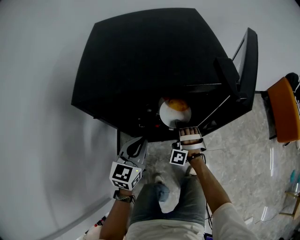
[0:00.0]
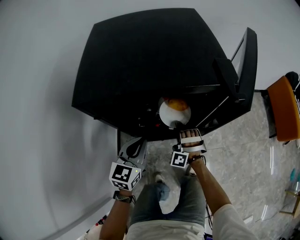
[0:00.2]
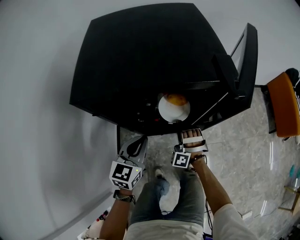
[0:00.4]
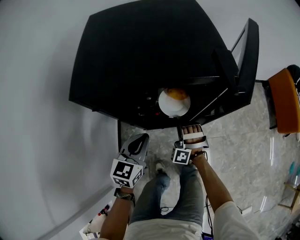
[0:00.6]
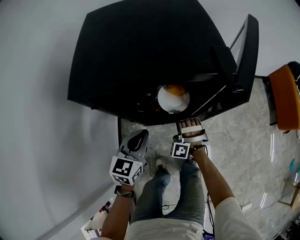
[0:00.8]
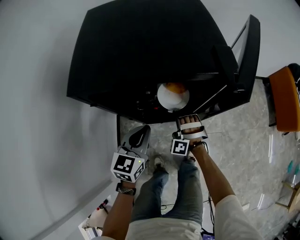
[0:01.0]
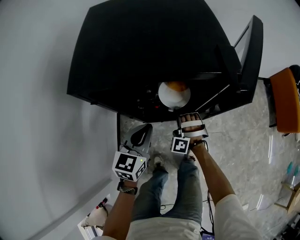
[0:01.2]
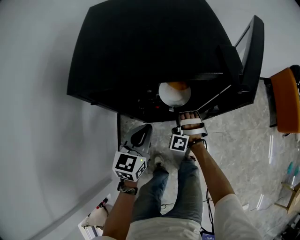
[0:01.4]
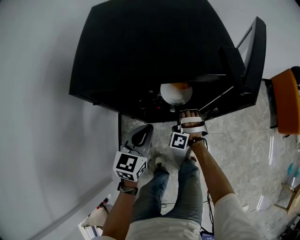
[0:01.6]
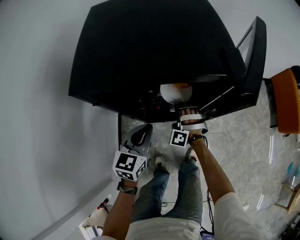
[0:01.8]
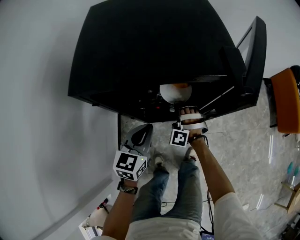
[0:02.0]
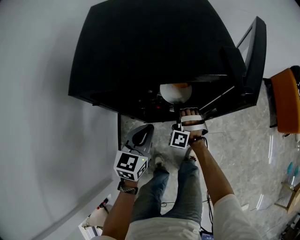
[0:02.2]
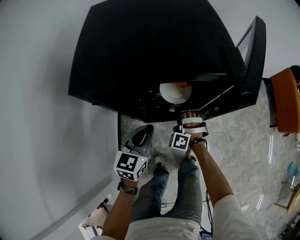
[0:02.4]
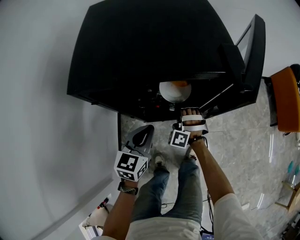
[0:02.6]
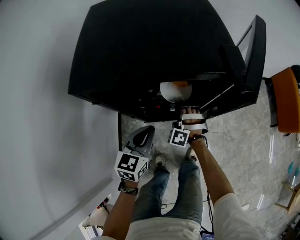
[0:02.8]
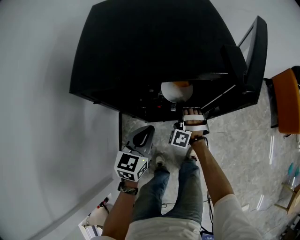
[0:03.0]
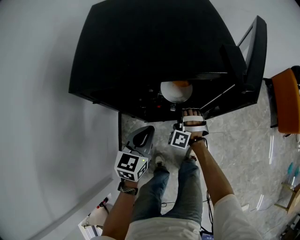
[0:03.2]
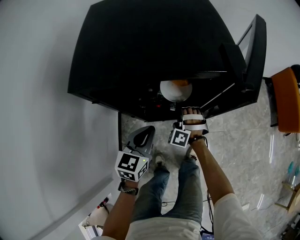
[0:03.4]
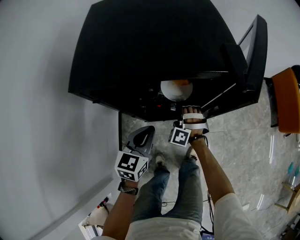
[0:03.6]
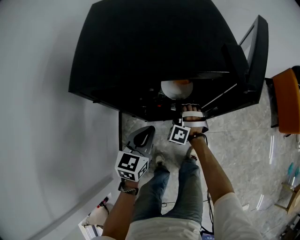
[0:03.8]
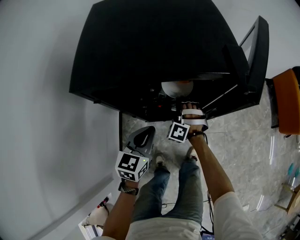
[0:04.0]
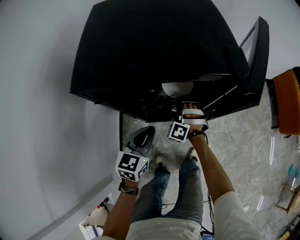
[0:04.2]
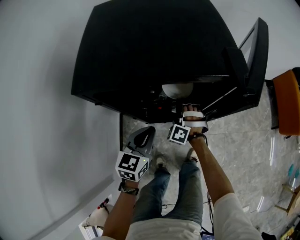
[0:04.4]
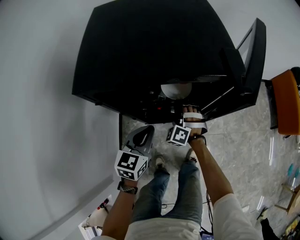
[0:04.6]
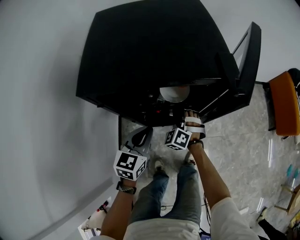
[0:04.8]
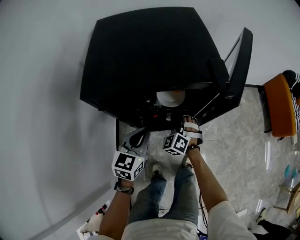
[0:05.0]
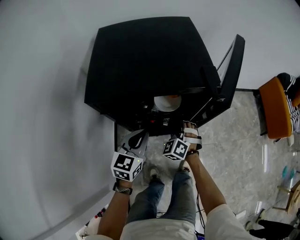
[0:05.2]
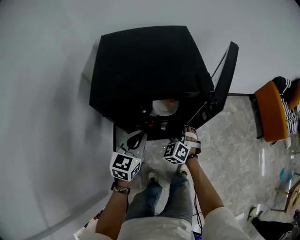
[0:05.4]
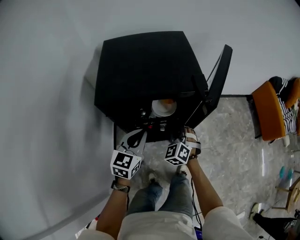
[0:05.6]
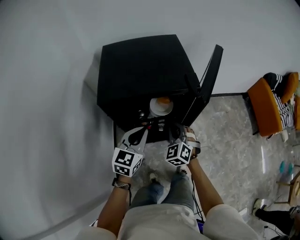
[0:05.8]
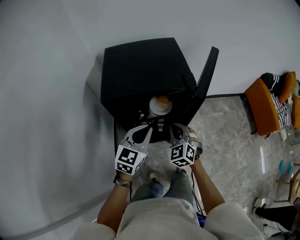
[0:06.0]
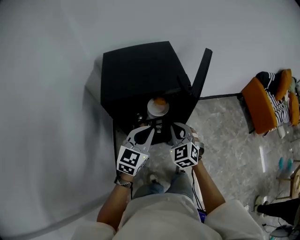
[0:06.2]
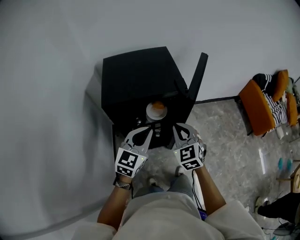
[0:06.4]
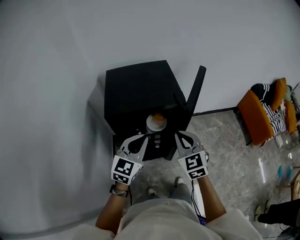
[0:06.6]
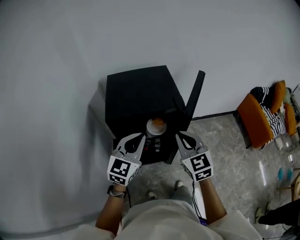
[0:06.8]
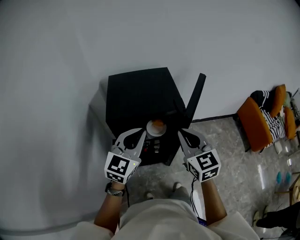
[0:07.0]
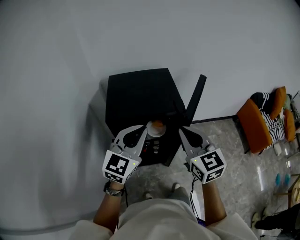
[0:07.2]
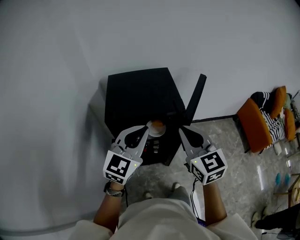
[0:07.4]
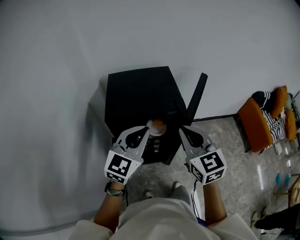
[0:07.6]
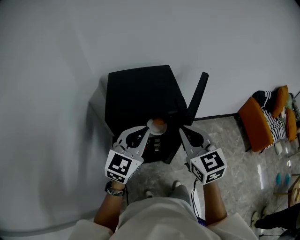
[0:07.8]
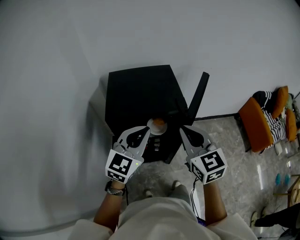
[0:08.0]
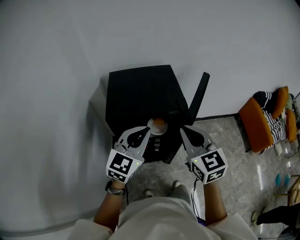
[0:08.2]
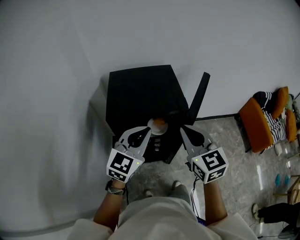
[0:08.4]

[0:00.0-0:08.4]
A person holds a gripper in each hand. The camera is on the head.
0:04.2 to 0:05.6: The left gripper goes approximately 10 cm upward.
0:05.6 to 0:07.0: The left gripper goes approximately 20 cm upward, and changes its angle by approximately 20 degrees.

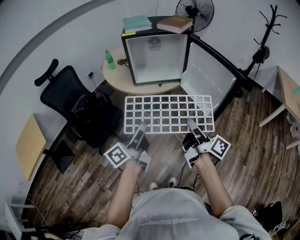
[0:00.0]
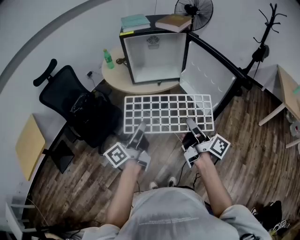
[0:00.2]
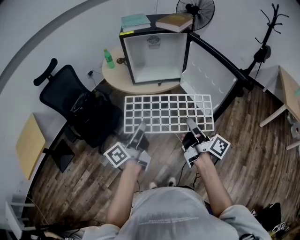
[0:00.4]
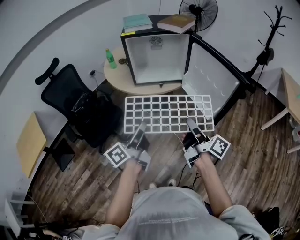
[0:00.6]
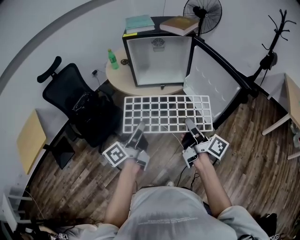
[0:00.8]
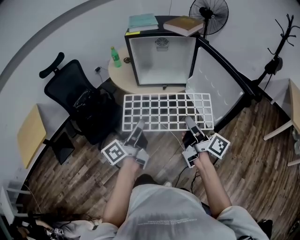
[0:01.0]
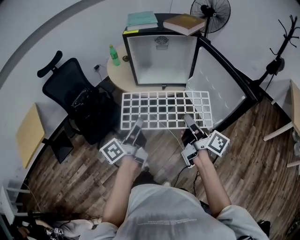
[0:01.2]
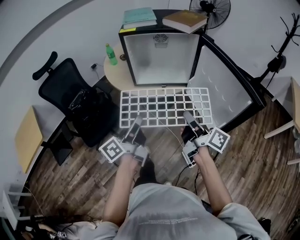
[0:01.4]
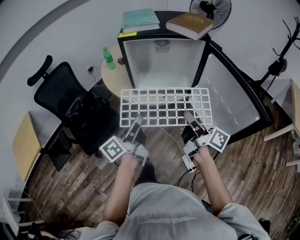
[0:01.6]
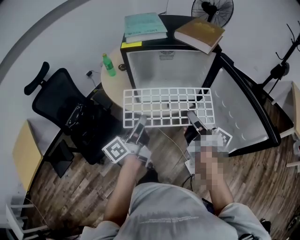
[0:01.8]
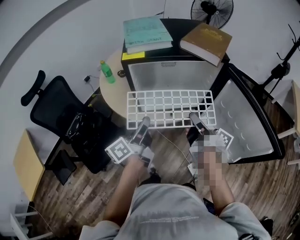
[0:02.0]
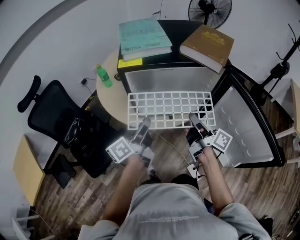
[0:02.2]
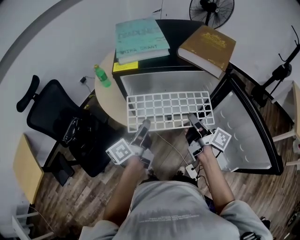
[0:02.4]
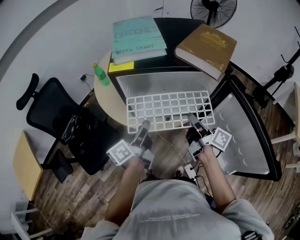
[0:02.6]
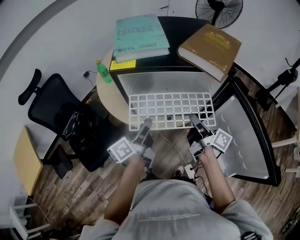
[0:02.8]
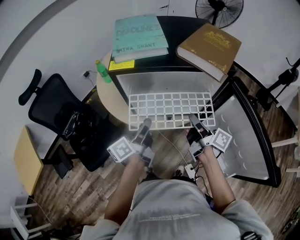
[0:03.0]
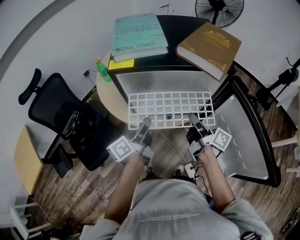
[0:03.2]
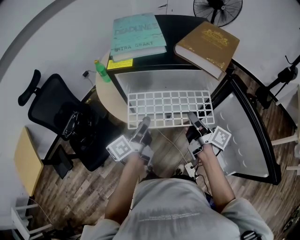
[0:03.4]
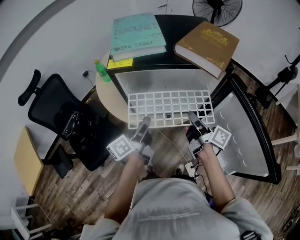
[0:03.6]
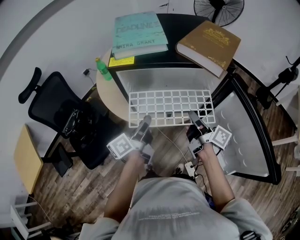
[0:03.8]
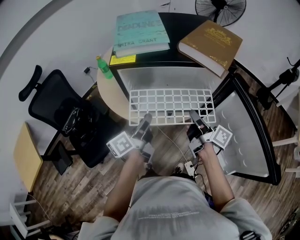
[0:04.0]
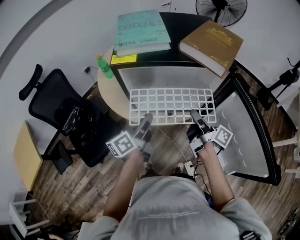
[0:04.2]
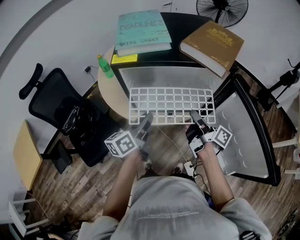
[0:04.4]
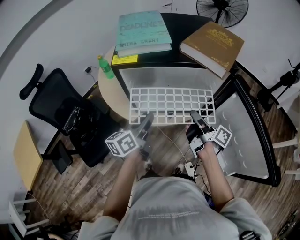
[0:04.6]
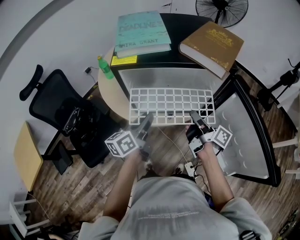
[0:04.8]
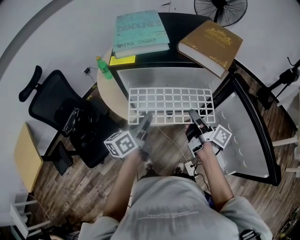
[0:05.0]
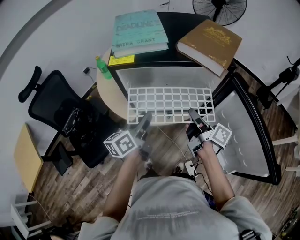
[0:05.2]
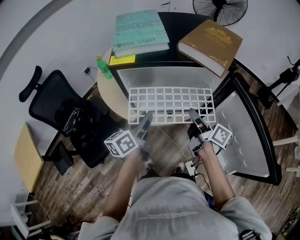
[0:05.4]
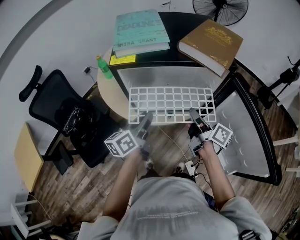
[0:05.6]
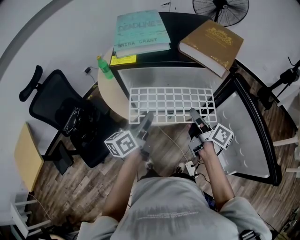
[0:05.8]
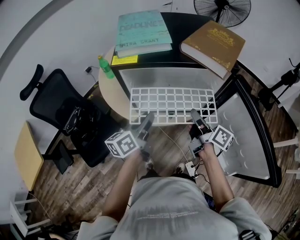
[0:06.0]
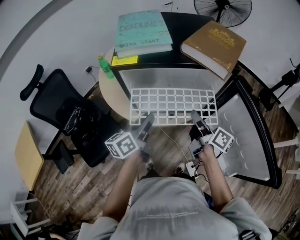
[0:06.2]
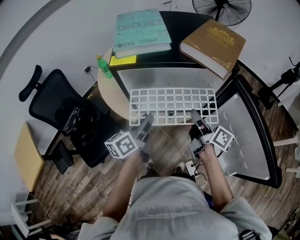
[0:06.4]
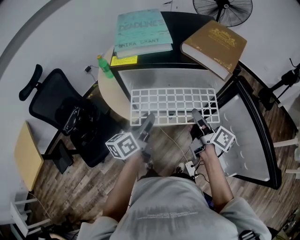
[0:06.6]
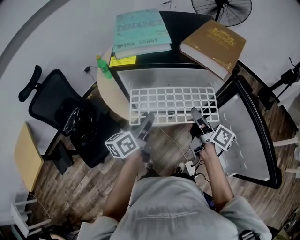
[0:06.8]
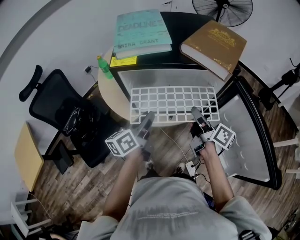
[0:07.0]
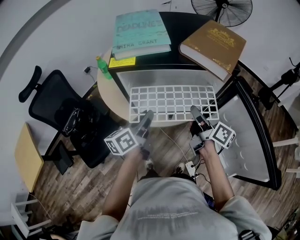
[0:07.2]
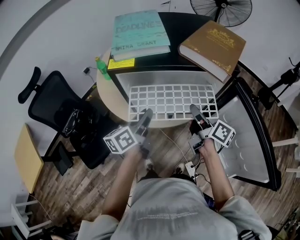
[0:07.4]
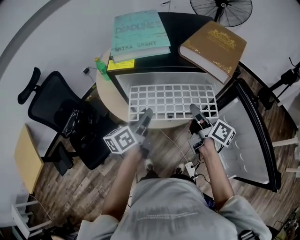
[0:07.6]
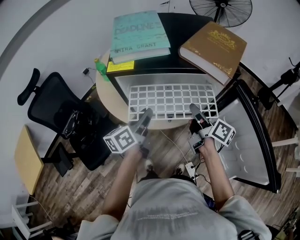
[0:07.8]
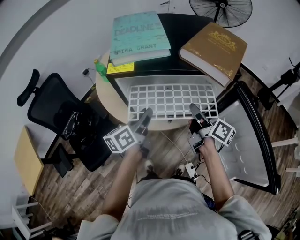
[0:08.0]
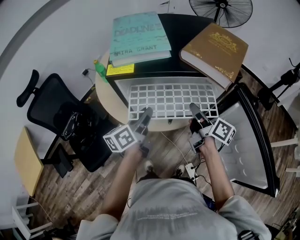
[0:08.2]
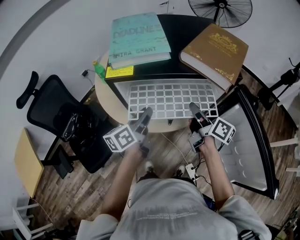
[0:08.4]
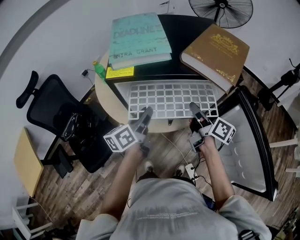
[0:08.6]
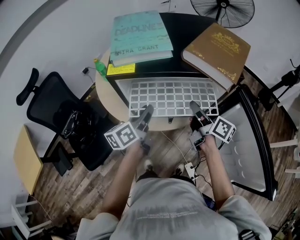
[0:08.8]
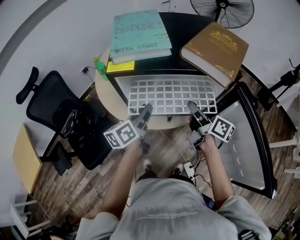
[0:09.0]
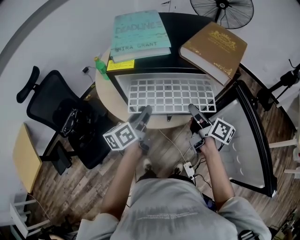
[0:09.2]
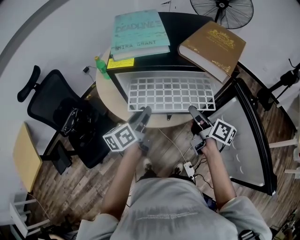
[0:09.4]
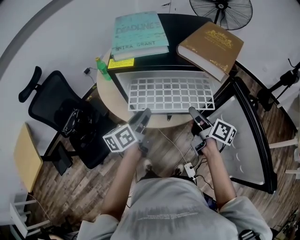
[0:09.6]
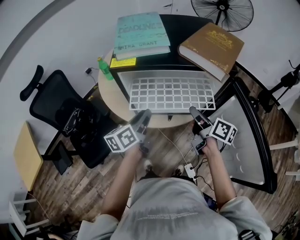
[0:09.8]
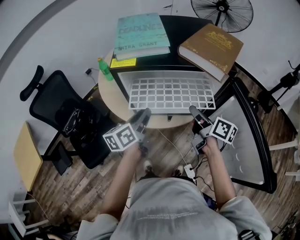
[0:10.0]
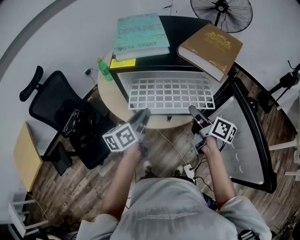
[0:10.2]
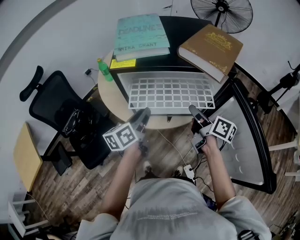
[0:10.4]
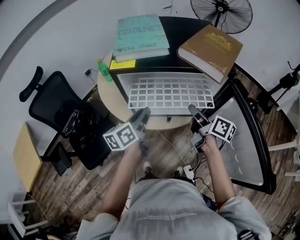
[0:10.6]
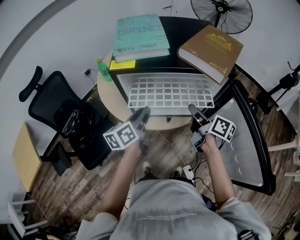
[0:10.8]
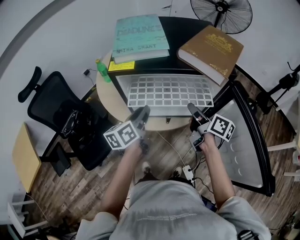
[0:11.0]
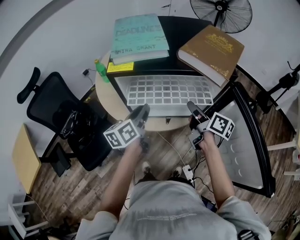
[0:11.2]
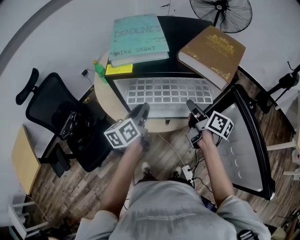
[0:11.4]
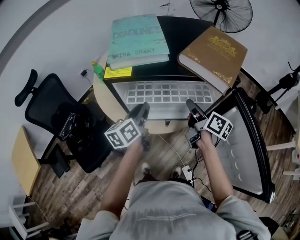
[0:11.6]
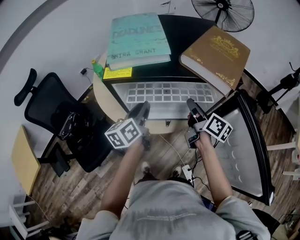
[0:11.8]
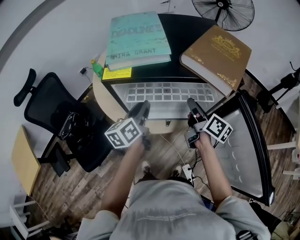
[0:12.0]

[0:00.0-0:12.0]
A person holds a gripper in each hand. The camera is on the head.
0:00.0 to 0:01.6: The grippers both shift forward by roughly 20 cm.
0:01.6 to 0:03.0: Both grippers move forward, about 20 cm.
0:03.0 to 0:04.4: The grippers make only small movements.
0:04.4 to 0:06.0: The grippers stay close to where they were, moving slightly.
0:06.0 to 0:07.6: There are only small adjustments of the grippers.
0:07.6 to 0:10.4: The grippers move only a little.
0:10.4 to 0:12.0: Both grippers move forward, some 5 cm.

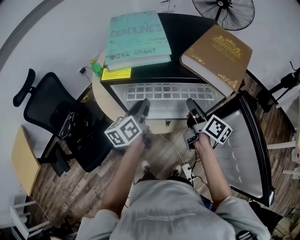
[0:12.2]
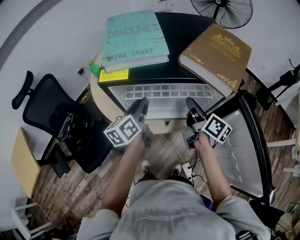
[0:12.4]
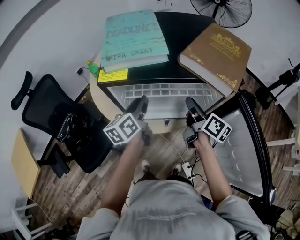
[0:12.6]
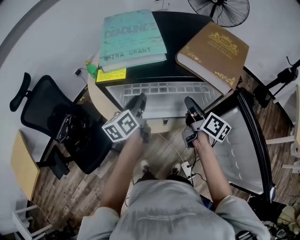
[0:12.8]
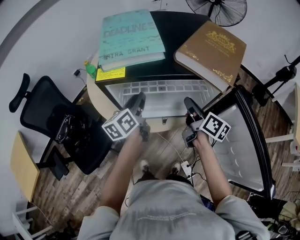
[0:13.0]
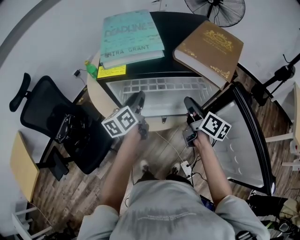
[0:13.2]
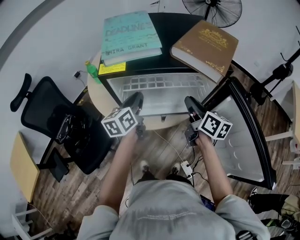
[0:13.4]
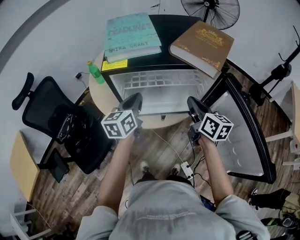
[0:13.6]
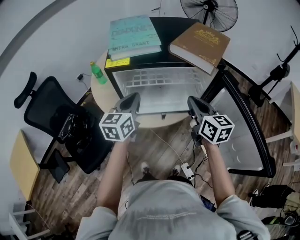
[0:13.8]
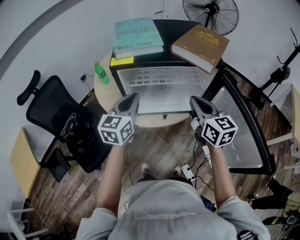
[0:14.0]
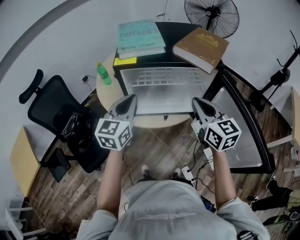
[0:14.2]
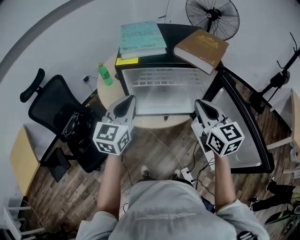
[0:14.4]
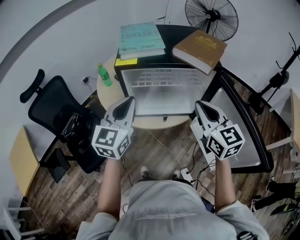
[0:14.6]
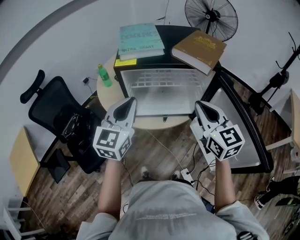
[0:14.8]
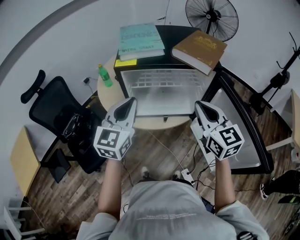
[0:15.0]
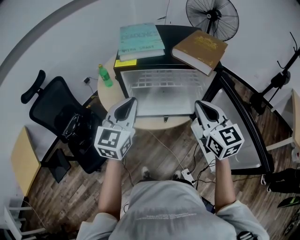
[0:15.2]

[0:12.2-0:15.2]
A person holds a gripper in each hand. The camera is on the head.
0:12.2 to 0:13.8: The right gripper travels backward and upward by some 10 cm, swivels approximately 40 degrees, and closes up, while the left gripper travels upward by some 5 cm, and turns by some 30 degrees.
0:13.8 to 0:15.2: Both grippers move upward and backward, roughly 10 cm. The right gripper changes its angle by roughly 20 degrees. The left gripper swivels roughly 20 degrees.

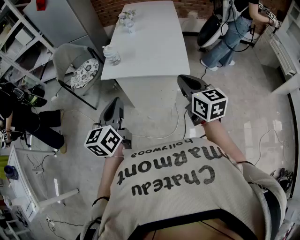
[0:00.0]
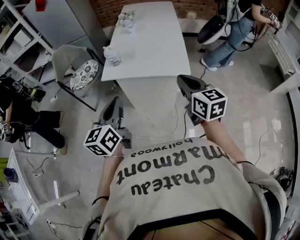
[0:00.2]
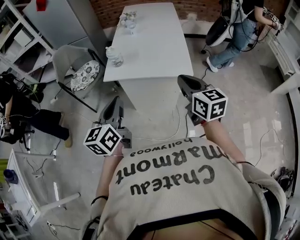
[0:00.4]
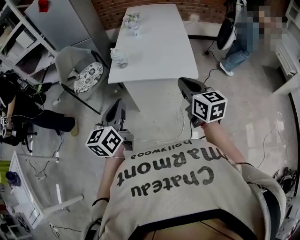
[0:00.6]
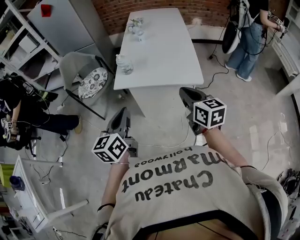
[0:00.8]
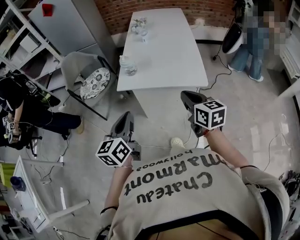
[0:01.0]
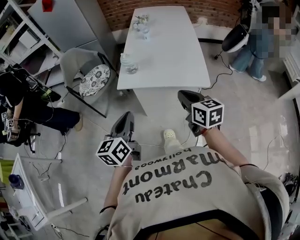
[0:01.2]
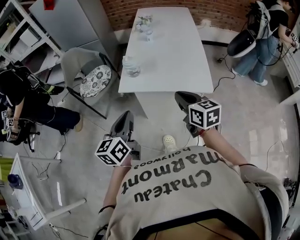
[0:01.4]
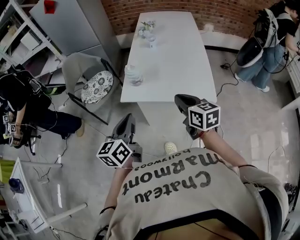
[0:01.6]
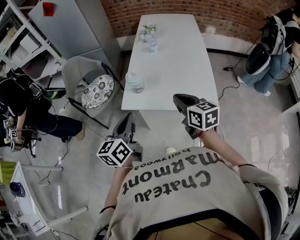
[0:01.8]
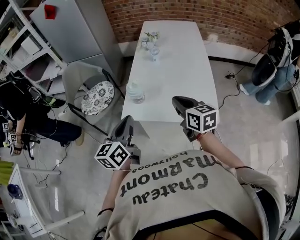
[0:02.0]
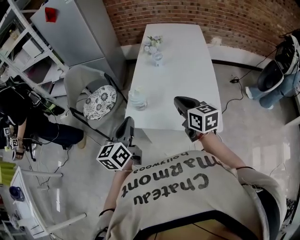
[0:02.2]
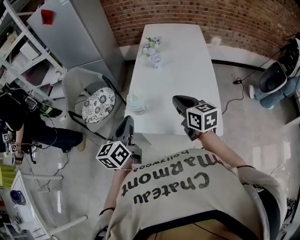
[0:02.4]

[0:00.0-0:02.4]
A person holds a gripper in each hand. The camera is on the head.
0:00.0 to 0:01.2: The right gripper heads to the left, forward and downward, covering some 15 cm. The left gripper shifts approximately 10 cm to the left, downward and forward.
0:01.2 to 0:02.4: The grippers both shift forward by approximately 25 cm.
